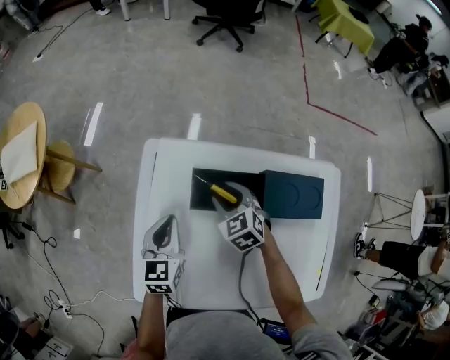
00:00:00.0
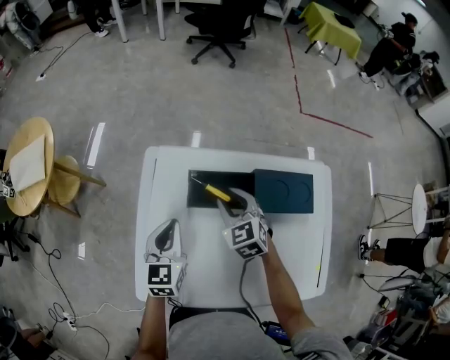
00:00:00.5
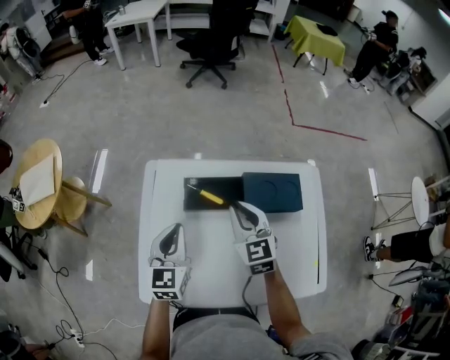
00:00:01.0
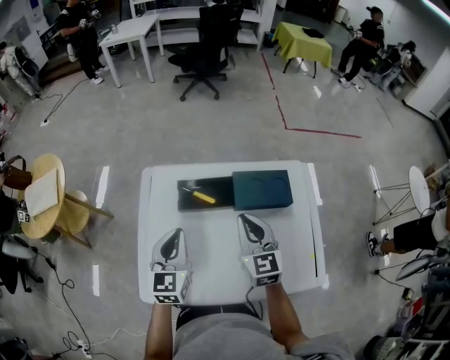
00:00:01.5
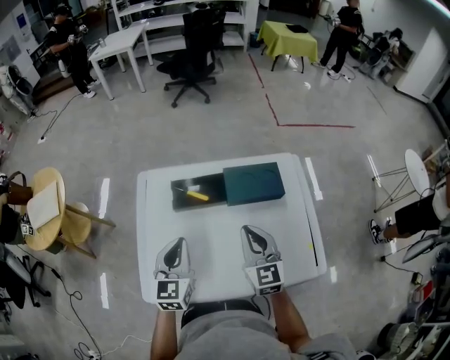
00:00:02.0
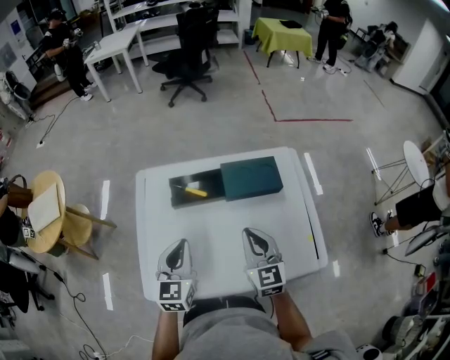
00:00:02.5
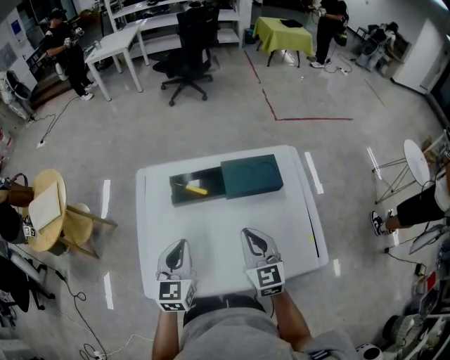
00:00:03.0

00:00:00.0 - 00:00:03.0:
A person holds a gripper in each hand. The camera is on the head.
00:00:00.0 - 00:00:01.5: Both grippers move upward, backward and to the right, roughly 25 cm. The right gripper points its fingers about 30 degrees further upward, and closes its fingers.
00:00:01.5 - 00:00:03.0: Both grippers travel together backward, roughly 10 cm.

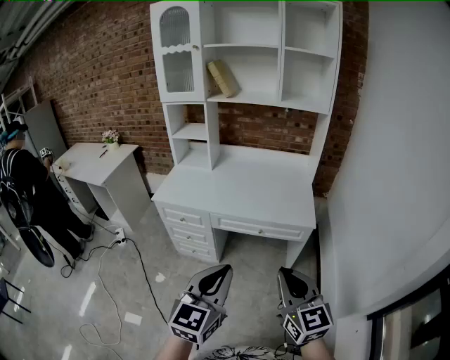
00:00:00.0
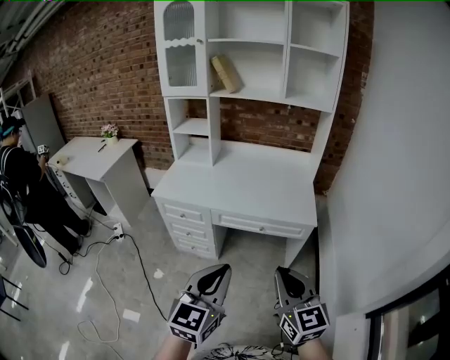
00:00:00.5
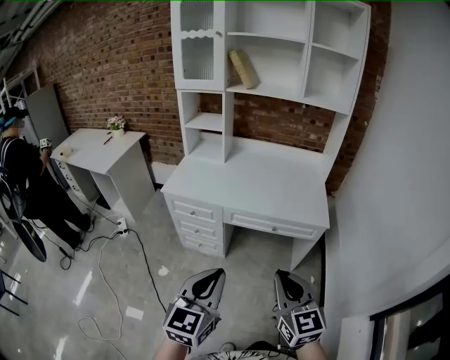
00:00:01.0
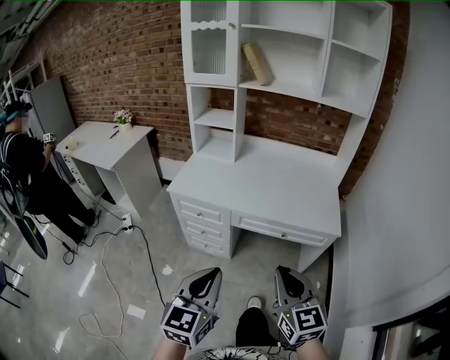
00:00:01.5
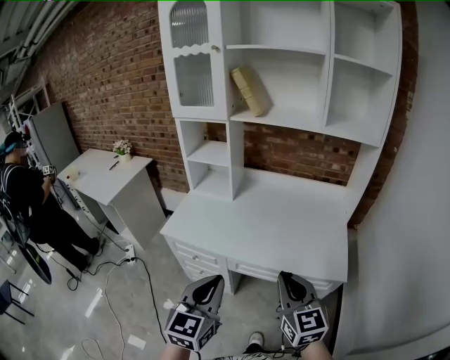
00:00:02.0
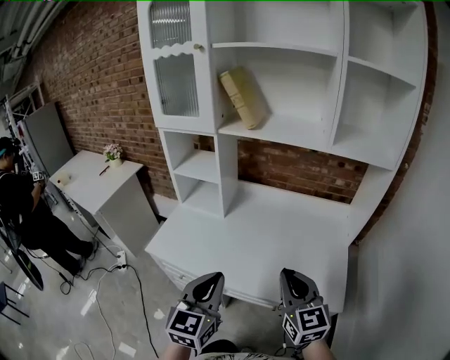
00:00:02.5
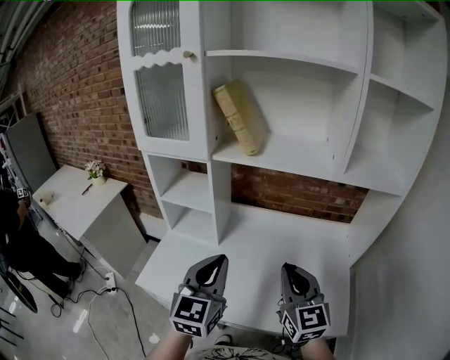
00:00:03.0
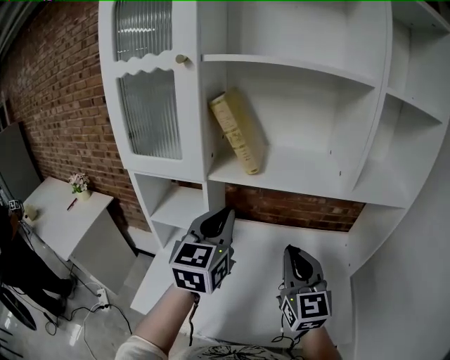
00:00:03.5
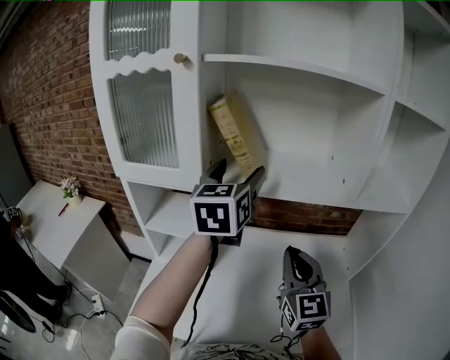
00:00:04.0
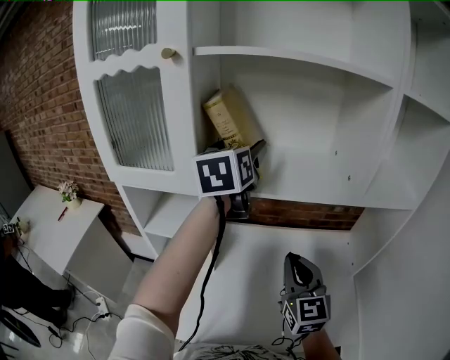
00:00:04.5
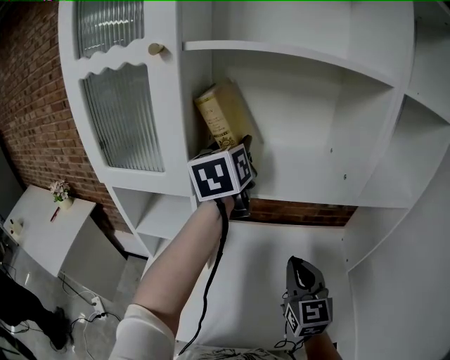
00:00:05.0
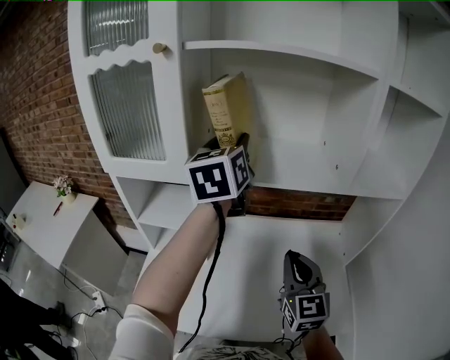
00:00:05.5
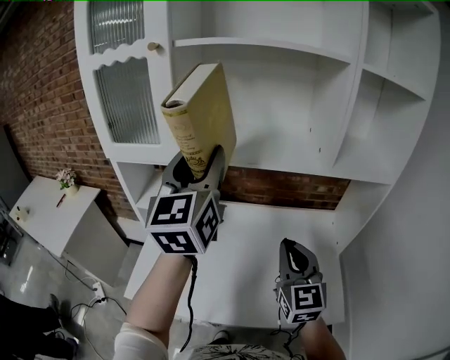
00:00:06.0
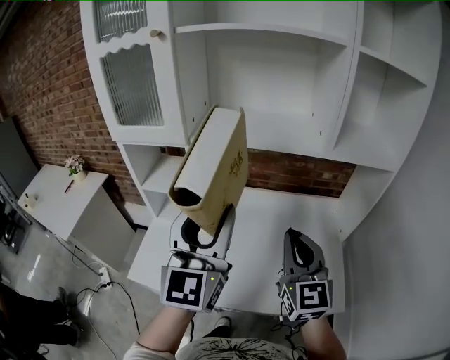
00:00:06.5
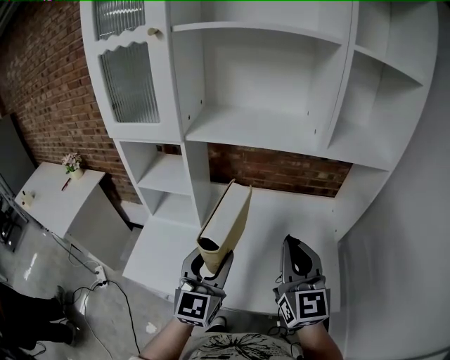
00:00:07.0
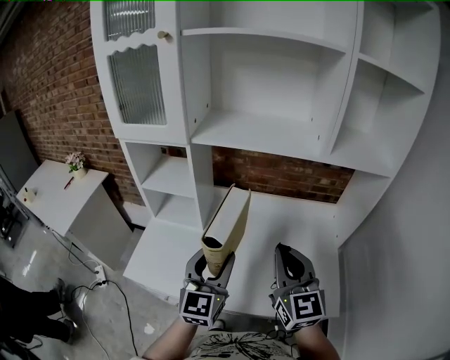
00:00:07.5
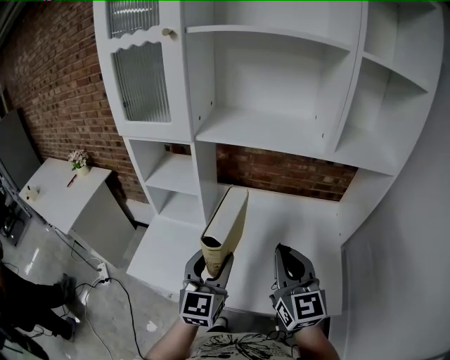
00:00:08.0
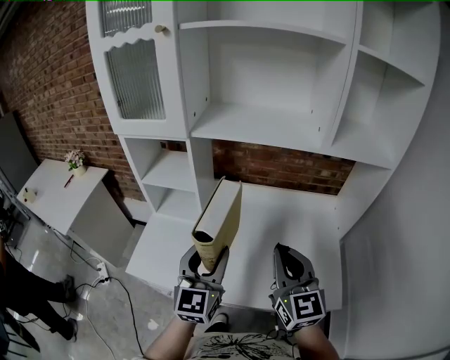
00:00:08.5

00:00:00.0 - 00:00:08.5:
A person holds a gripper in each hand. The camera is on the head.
00:00:00.0 - 00:00:02.0: The grippers both shift forward by about 30 cm.
00:00:02.0 - 00:00:04.0: The pair of grippers is taken forward, roughly 50 cm. The left gripper opens its fingers, while the right gripper changes its angle by approximately 20 degrees.
00:00:04.0 - 00:00:06.5: The left gripper is displaced backward by about 25 cm, turns by about 20 degrees, and closes its fingers, while the right gripper is displaced backward and to the right by some 10 cm.
00:00:06.5 - 00:00:08.5: The right gripper shifts by approximately 5 cm; the left gripper travels downward by some 15 cm.

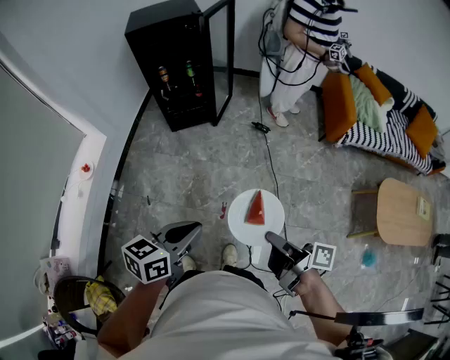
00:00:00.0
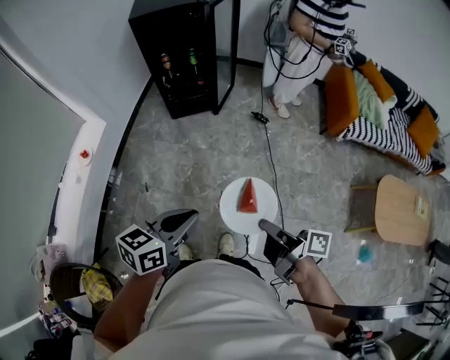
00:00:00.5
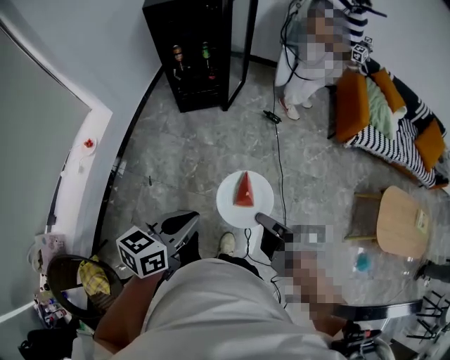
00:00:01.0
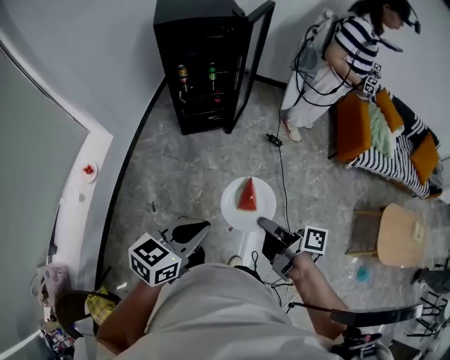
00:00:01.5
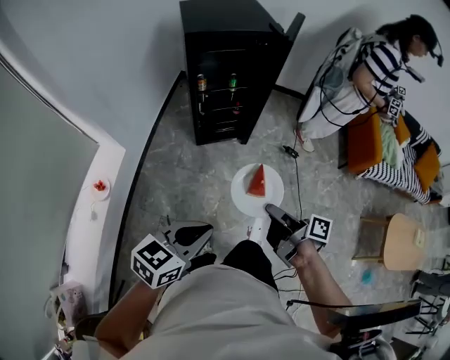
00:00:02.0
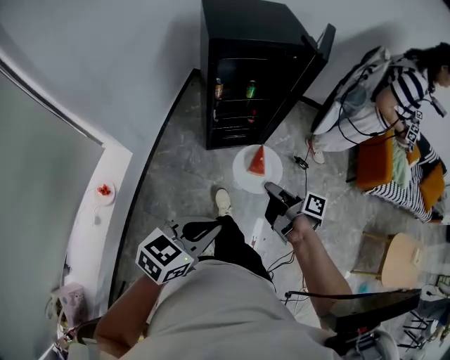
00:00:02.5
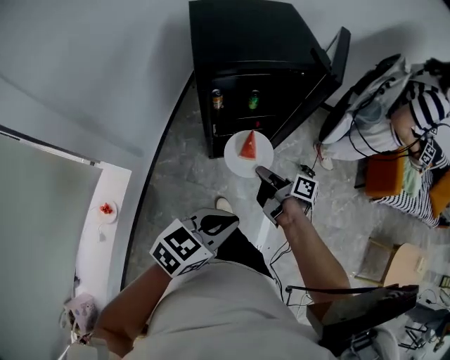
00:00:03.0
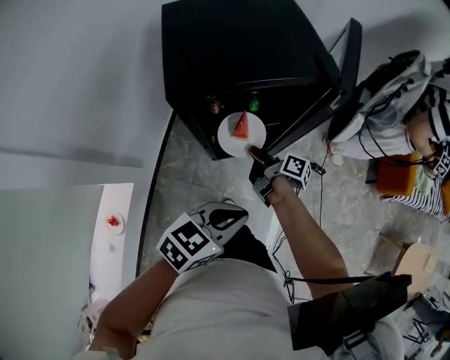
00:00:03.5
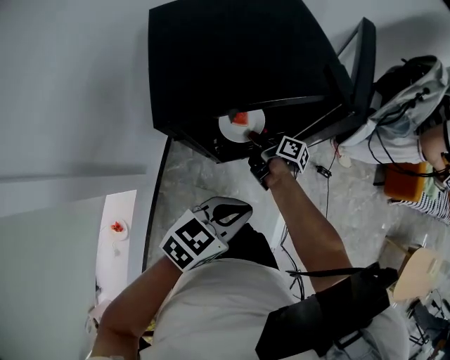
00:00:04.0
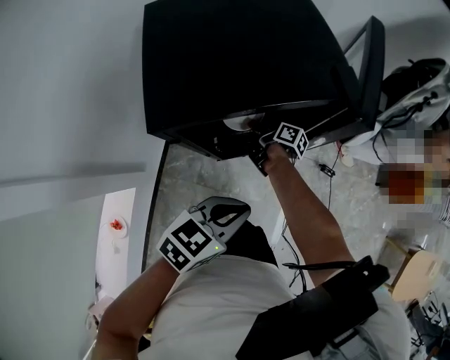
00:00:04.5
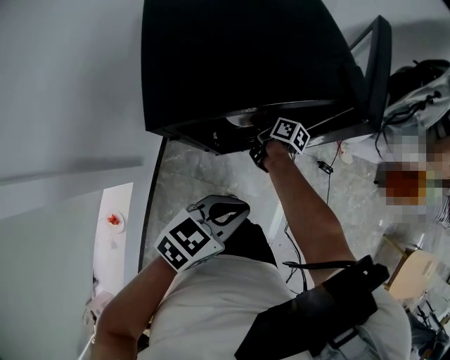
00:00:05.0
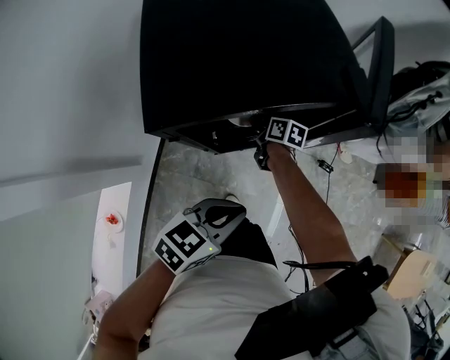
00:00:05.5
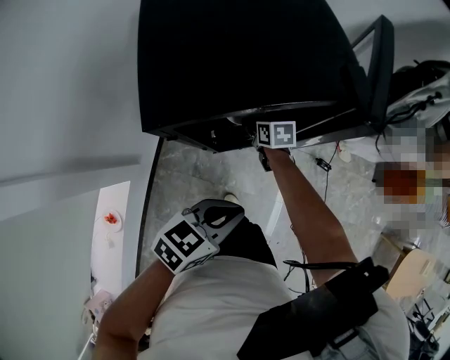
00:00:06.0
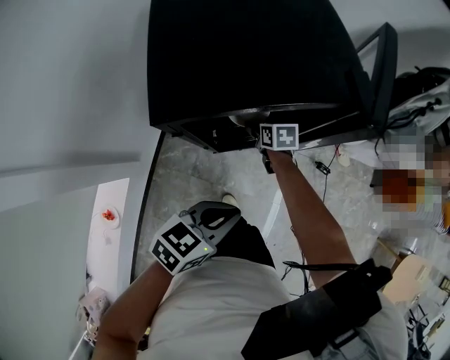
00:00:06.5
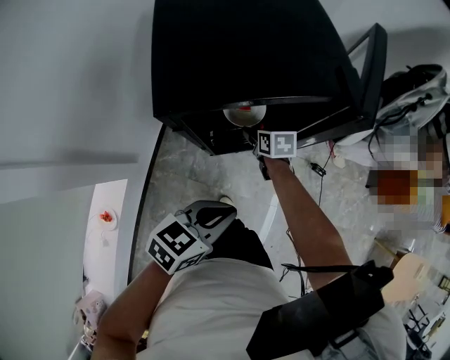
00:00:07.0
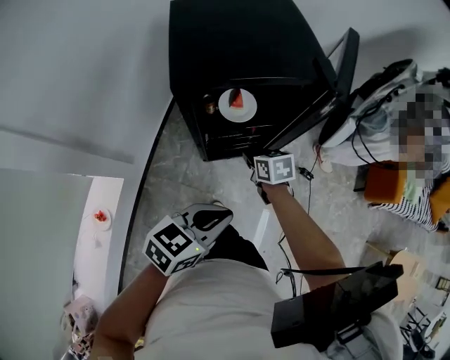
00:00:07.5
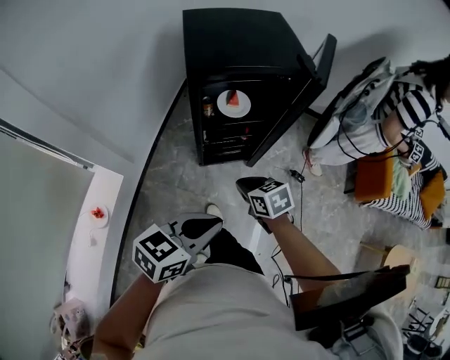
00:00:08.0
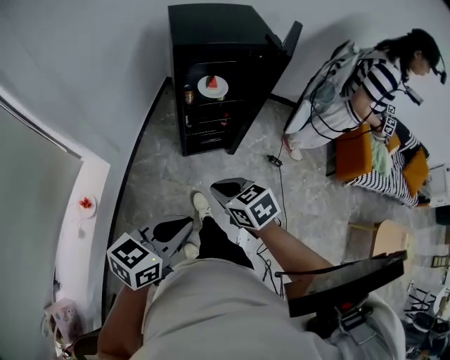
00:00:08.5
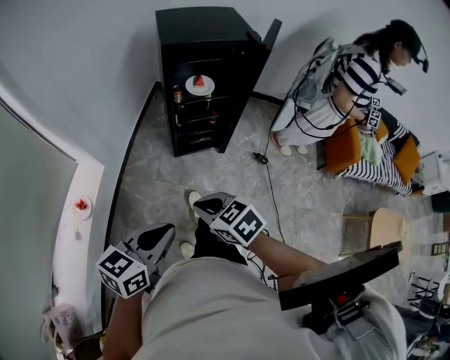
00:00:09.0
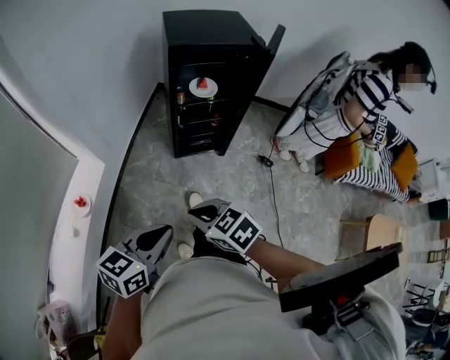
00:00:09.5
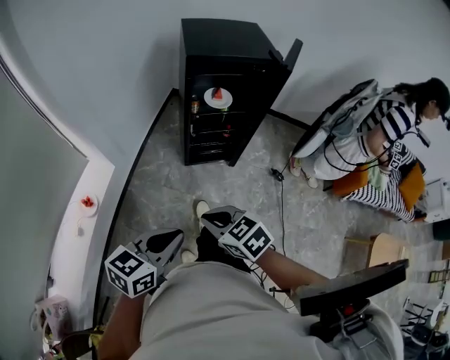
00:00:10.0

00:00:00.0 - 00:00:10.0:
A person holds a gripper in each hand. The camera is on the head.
00:00:00.0 - 00:00:02.0: The right gripper goes about 40 cm forward and to the left; the left gripper goes approximately 35 cm to the left and forward.
00:00:02.0 - 00:00:04.0: The pair of grippers is taken forward, about 50 cm.
00:00:04.0 - 00:00:06.0: The right gripper shifts by some 5 cm, rolls counterclockwise, seen from behind, by about 60 degrees, and opens up.
00:00:06.0 - 00:00:08.0: The right gripper shifts roughly 35 cm backward and upward, and closes up, while the left gripper is displaced backward and upward by some 20 cm.
00:00:08.0 - 00:00:10.0: The right gripper heads backward, covering about 25 cm, and changes its angle by about 20 degrees; the left gripper goes about 20 cm backward and to the left.

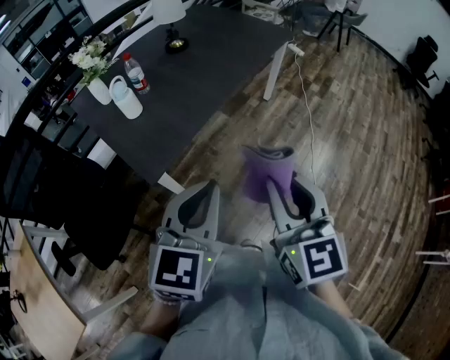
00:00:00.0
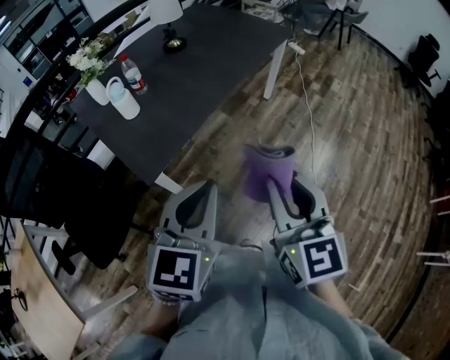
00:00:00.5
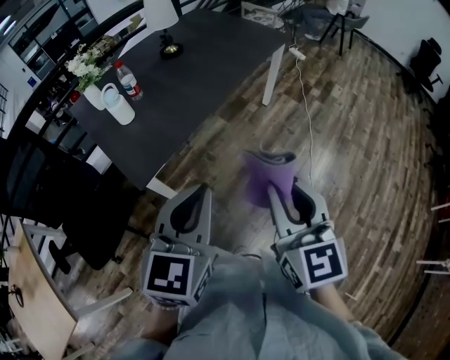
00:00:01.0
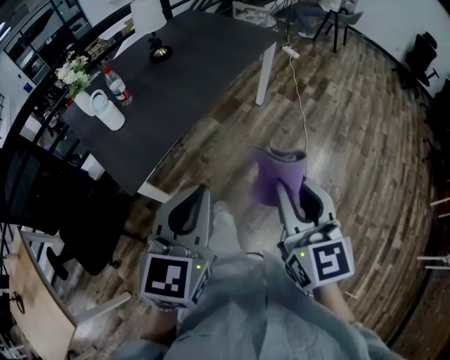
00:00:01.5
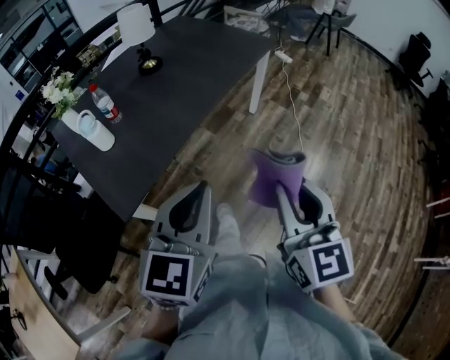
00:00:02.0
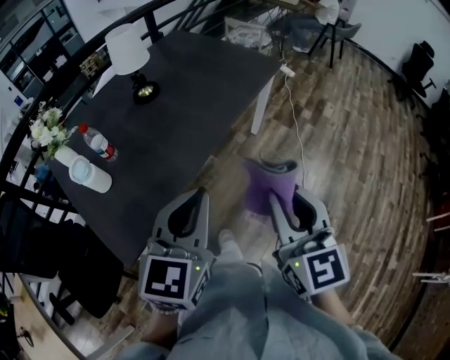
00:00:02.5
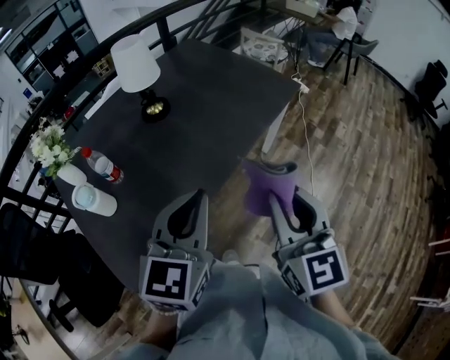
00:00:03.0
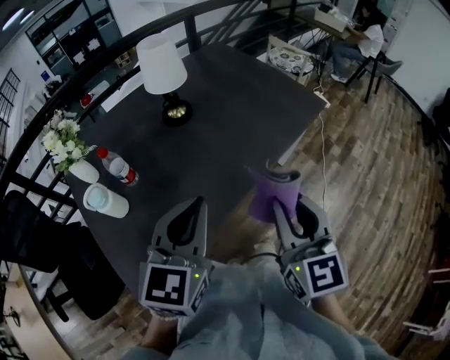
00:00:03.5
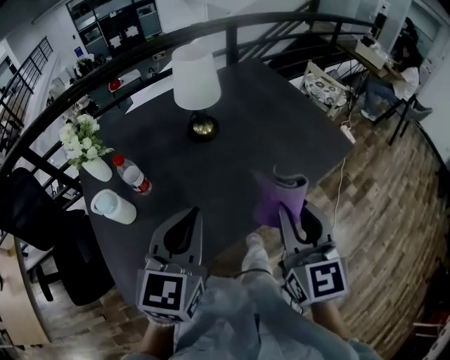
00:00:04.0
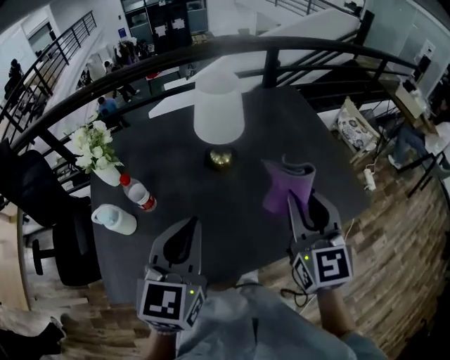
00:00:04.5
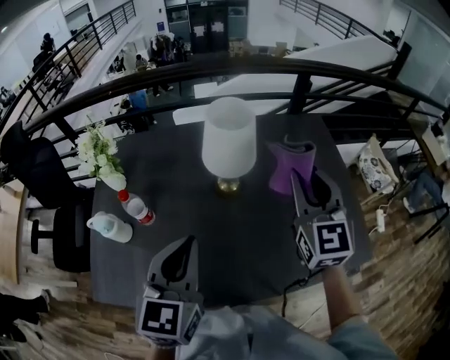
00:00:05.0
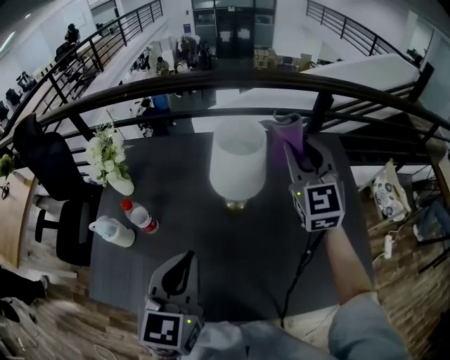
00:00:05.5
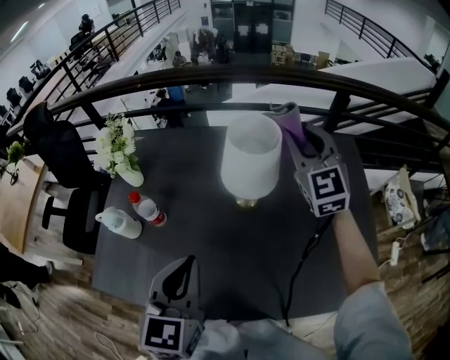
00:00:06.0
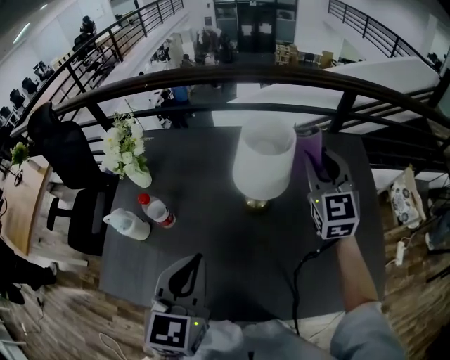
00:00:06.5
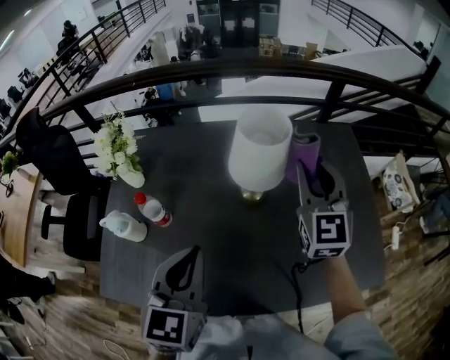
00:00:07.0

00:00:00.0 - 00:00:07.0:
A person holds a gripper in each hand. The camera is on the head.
00:00:00.0 - 00:00:02.0: The right gripper travels to the right and forward by some 15 cm. Meanwhile the left gripper heads forward and to the right, covering approximately 15 cm.
00:00:02.0 - 00:00:03.5: The two grippers go roughly 30 cm forward.
00:00:03.5 - 00:00:05.0: The left gripper moves roughly 20 cm, and changes its angle by roughly 40 degrees; the right gripper ends up approximately 50 cm from where it was, and turns by approximately 30 degrees.
00:00:05.0 - 00:00:07.0: The right gripper heads forward, covering approximately 10 cm.
